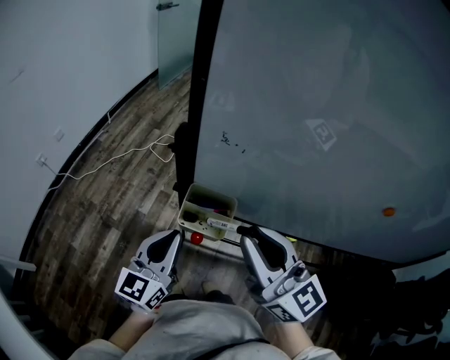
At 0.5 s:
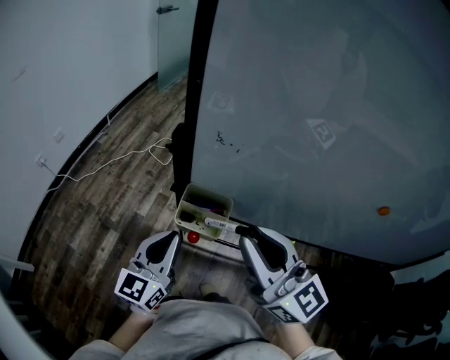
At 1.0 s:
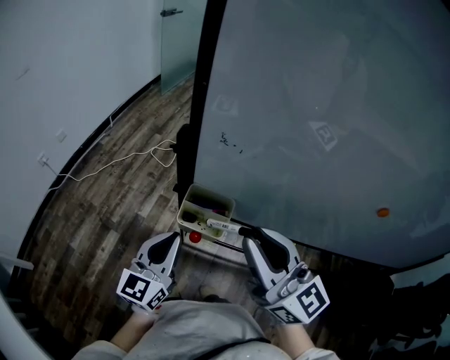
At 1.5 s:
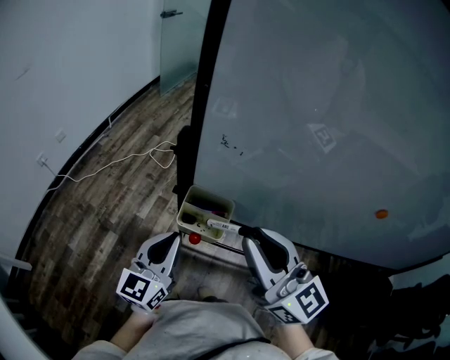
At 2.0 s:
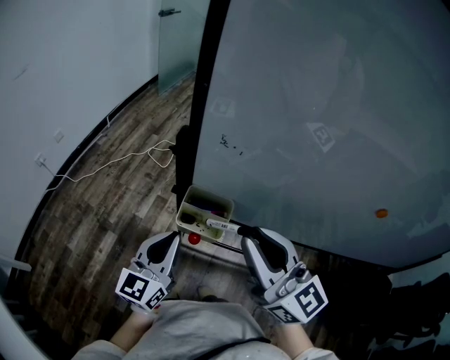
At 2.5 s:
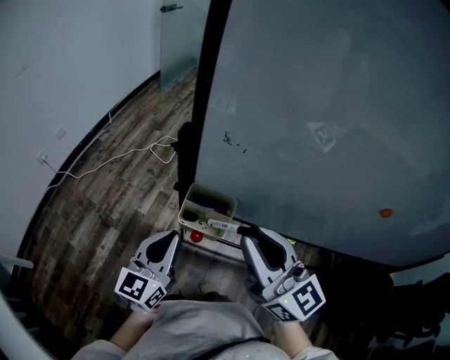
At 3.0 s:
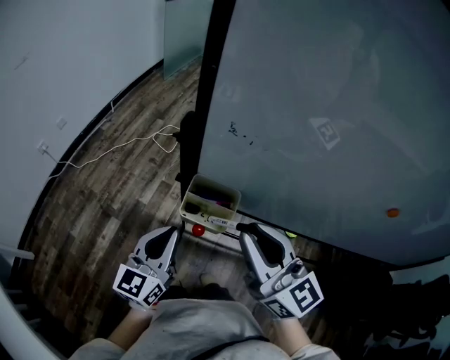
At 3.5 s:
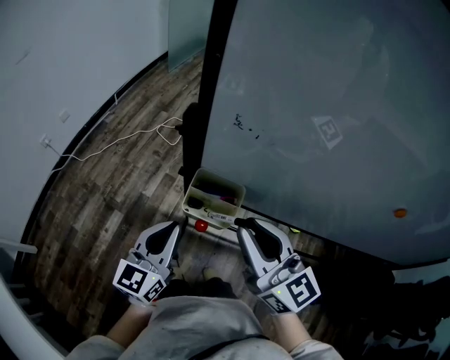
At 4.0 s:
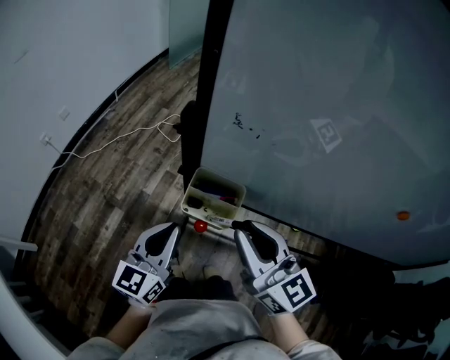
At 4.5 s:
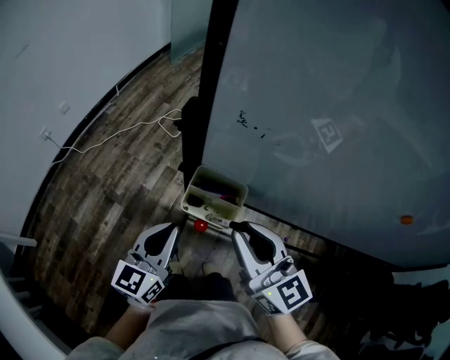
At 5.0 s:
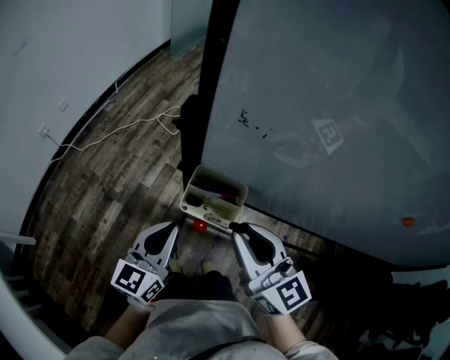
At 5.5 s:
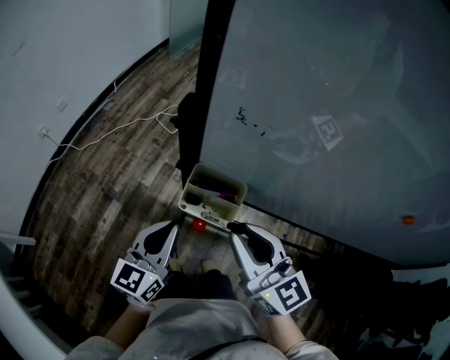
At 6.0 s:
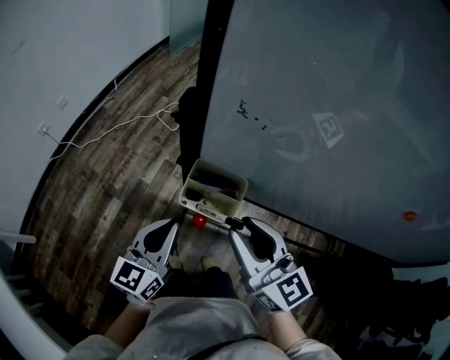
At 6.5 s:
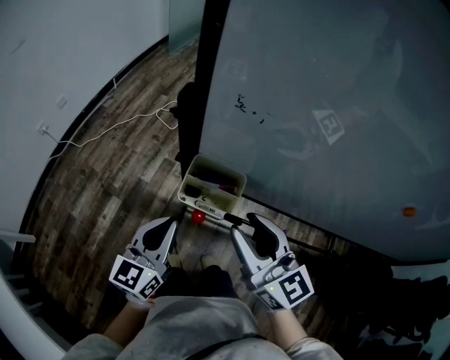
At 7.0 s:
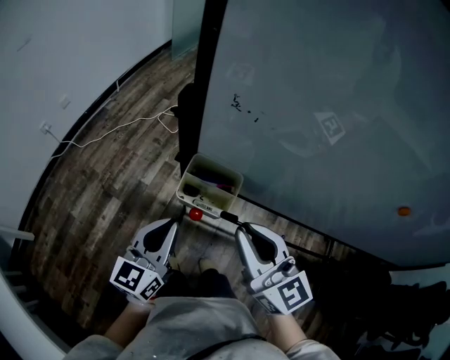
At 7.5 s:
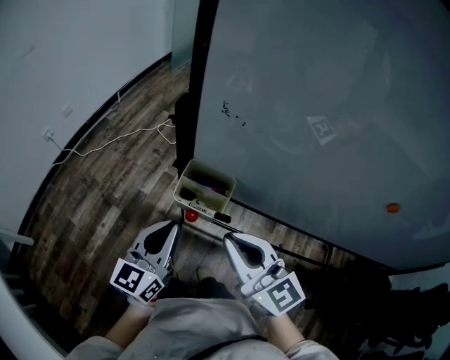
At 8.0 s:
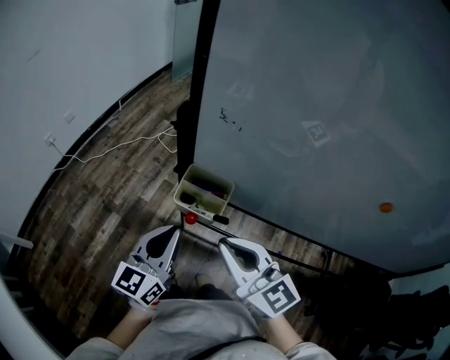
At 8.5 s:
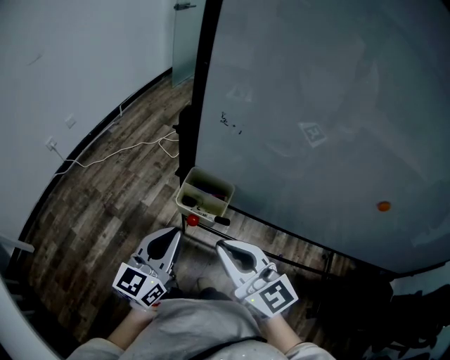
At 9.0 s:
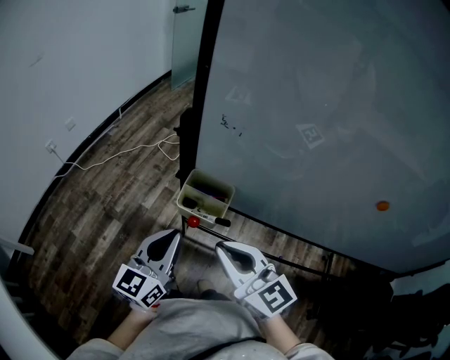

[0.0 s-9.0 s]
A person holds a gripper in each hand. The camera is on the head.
0.0 to 2.0 s: There are only small adjustments of the grippers.
2.0 to 4.5 s: The right gripper shifts some 10 cm downward.
4.5 to 7.0 s: There are only small adjustments of the grippers.
7.0 to 9.0 s: The grippers move only a little.

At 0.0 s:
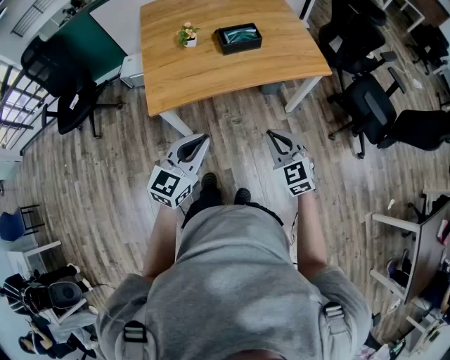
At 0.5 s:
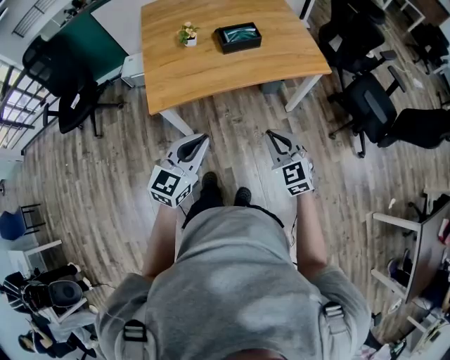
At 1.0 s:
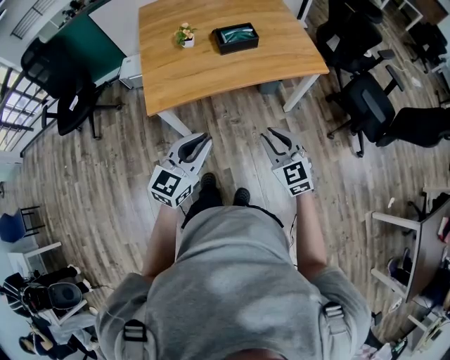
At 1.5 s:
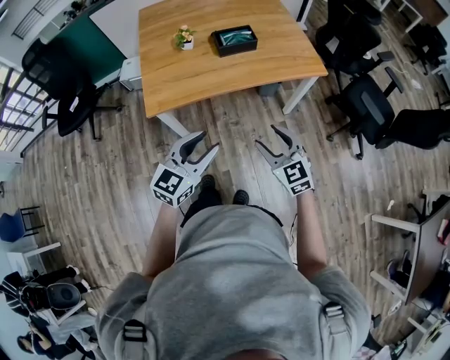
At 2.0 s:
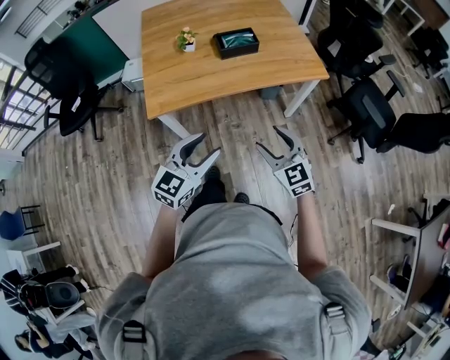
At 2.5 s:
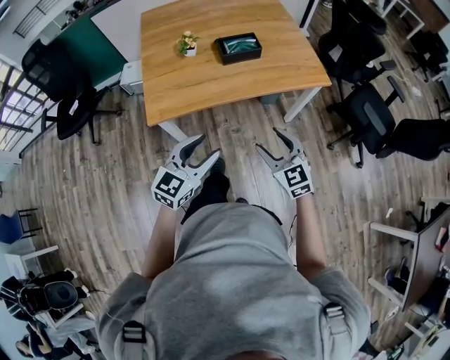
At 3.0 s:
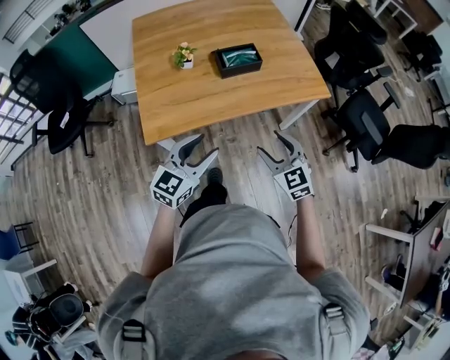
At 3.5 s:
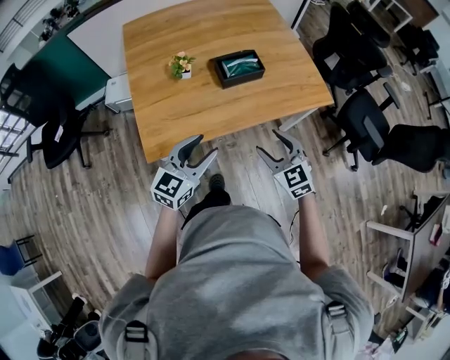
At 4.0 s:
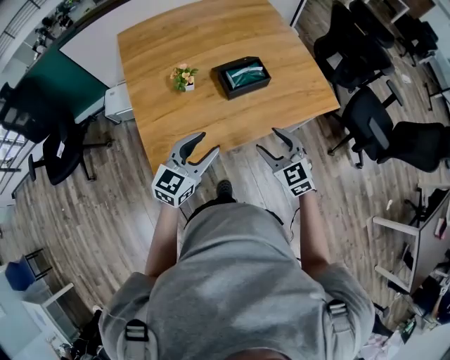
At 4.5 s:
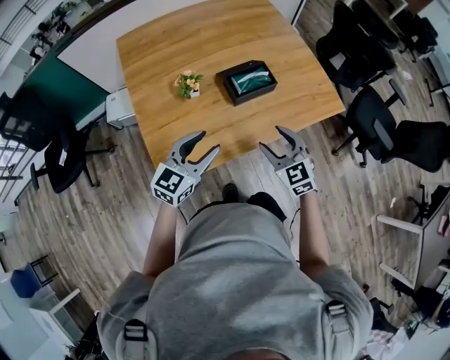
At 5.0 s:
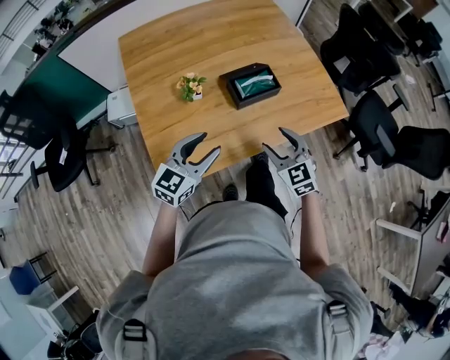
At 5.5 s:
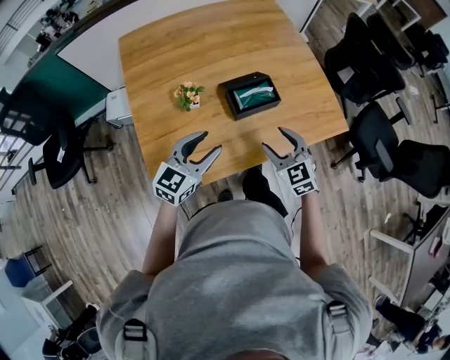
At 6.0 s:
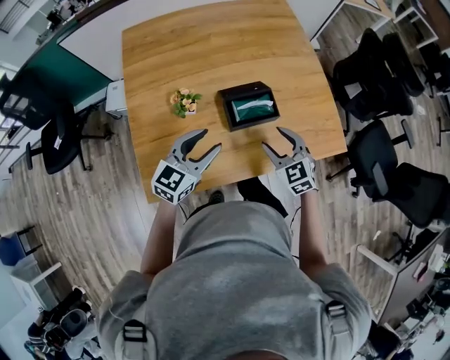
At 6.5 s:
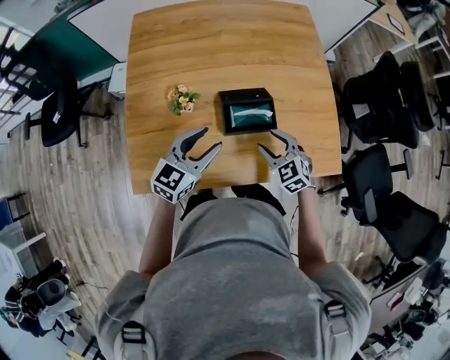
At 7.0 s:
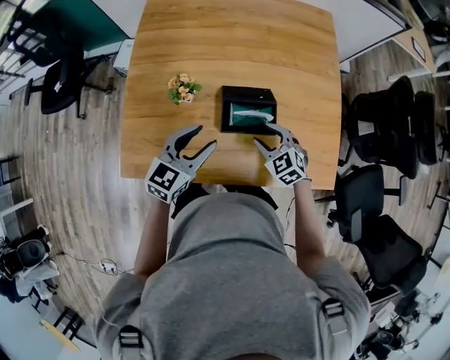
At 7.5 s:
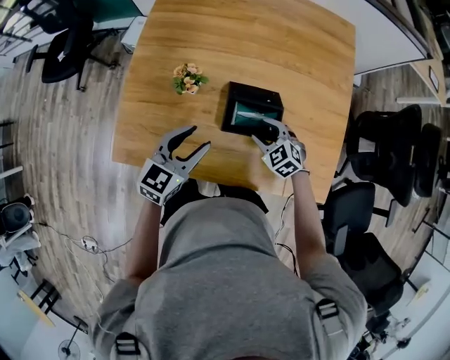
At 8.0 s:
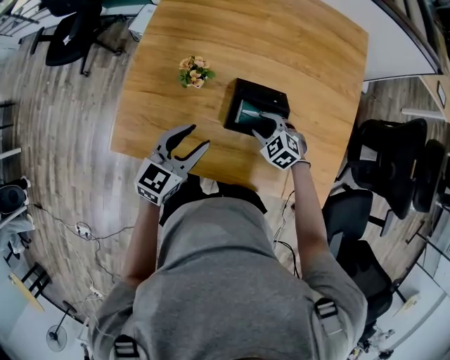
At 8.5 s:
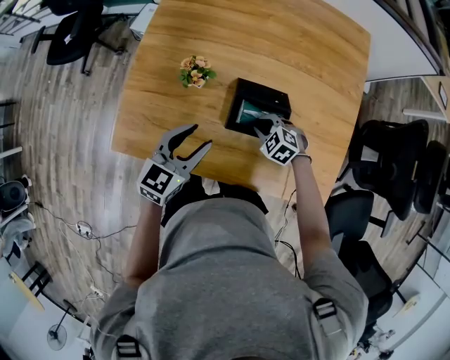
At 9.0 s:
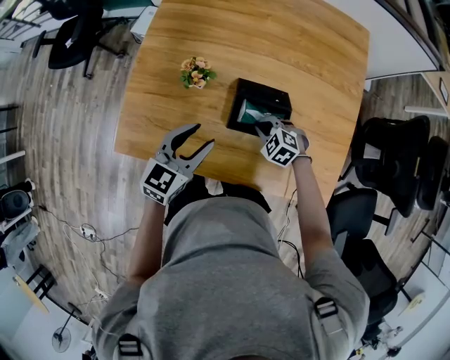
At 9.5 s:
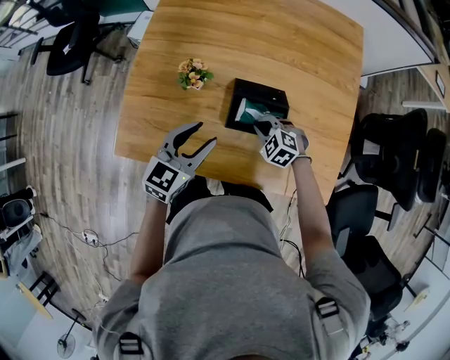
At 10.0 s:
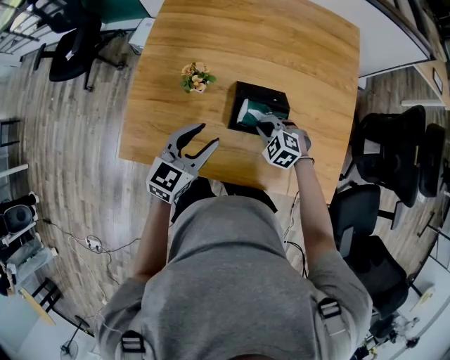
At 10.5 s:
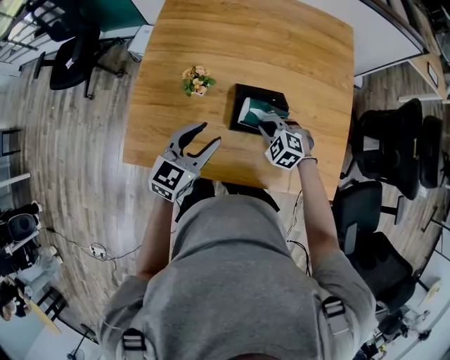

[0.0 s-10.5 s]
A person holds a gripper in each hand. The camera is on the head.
0.0 to 2.0 s: The left gripper opens its fingers. Meanwhile the right gripper opens up.
2.0 to 4.0 s: The two grippers go approximately 30 cm forward and to the left.
4.0 to 6.5 s: The grippers both shift forward by approximately 25 cm. The right gripper turns by some 20 degrees.
6.5 to 8.5 s: The right gripper shifts some 15 cm downward, swivels about 40 degrees, and closes. Meanwhile the left gripper changes place by roughly 5 cm, and turns by some 20 degrees.
8.5 to 10.5 s: The right gripper goes about 5 cm upward.

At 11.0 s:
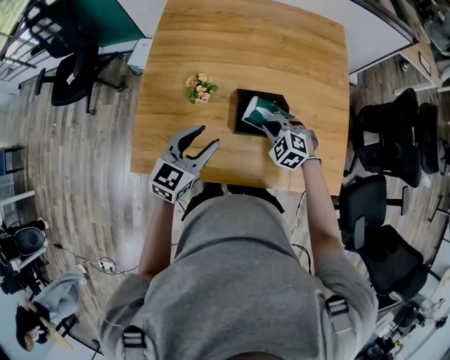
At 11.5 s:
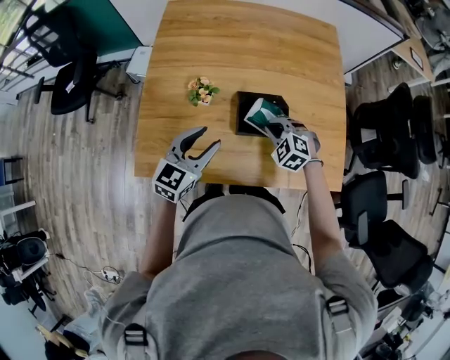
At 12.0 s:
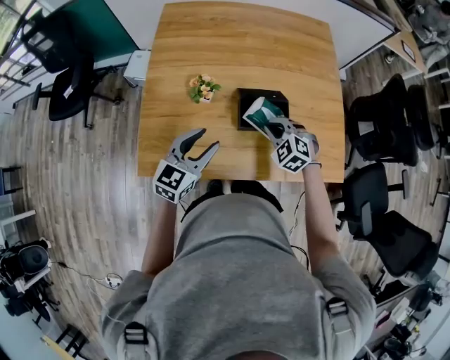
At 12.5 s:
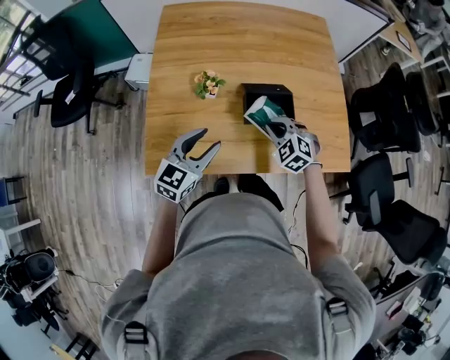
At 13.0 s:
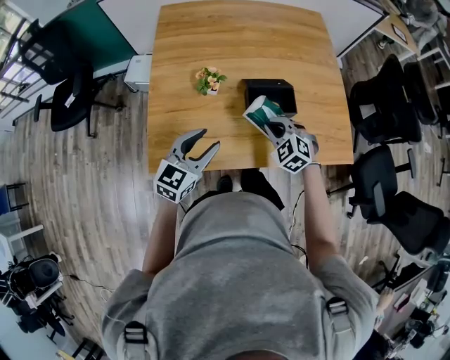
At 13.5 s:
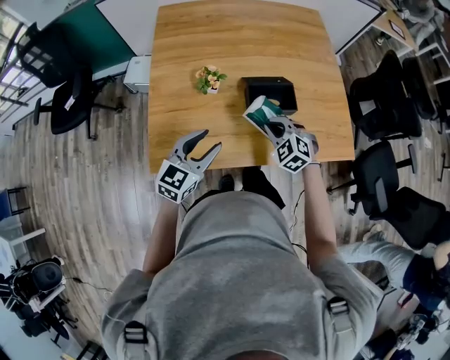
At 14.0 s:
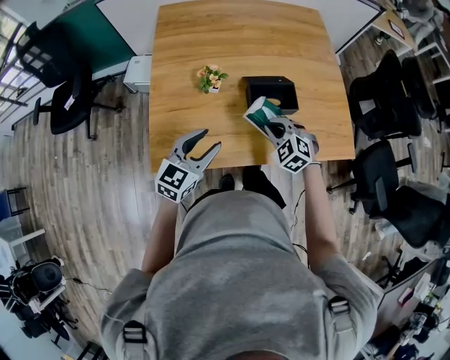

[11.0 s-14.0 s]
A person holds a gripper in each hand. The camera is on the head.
11.0 to 12.5 s: The right gripper moves backward, about 10 cm. Meanwhile the left gripper moves backward and to the left, approximately 10 cm.
12.5 to 14.0 s: The grippers move only a little.

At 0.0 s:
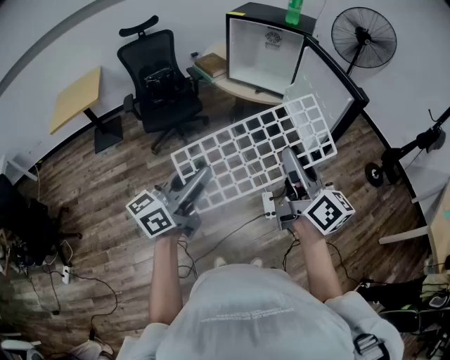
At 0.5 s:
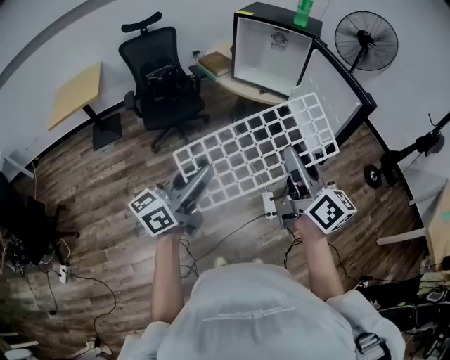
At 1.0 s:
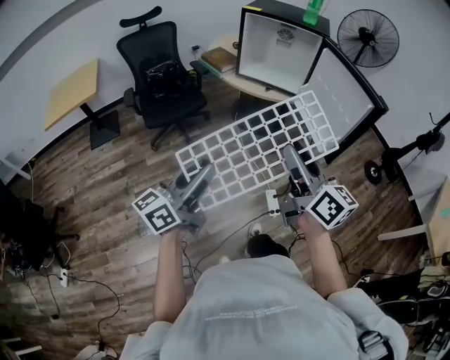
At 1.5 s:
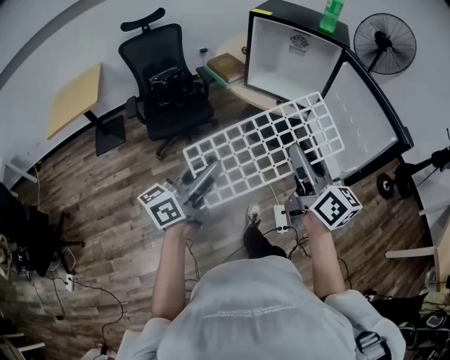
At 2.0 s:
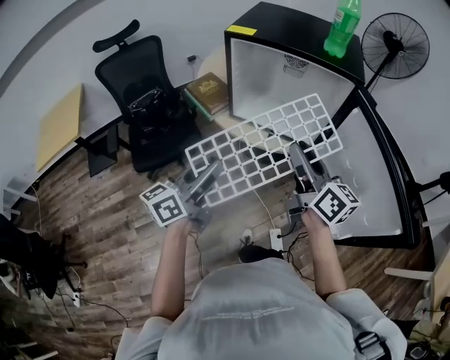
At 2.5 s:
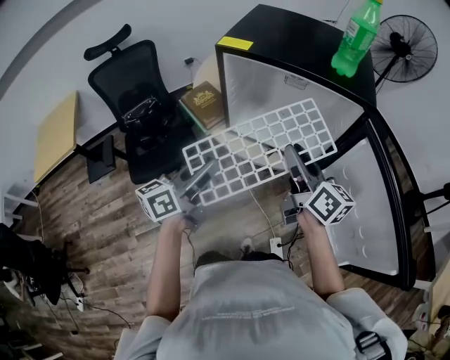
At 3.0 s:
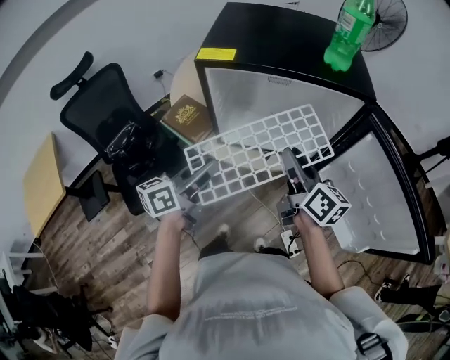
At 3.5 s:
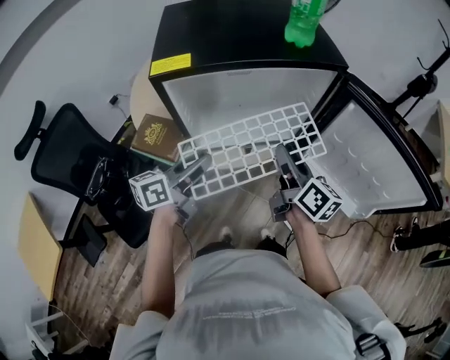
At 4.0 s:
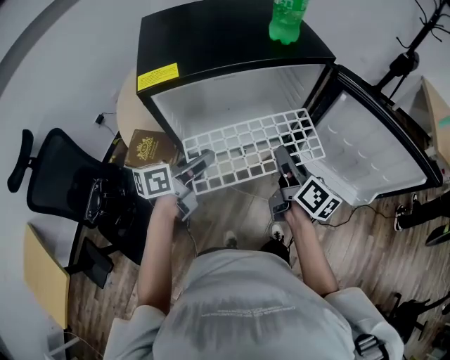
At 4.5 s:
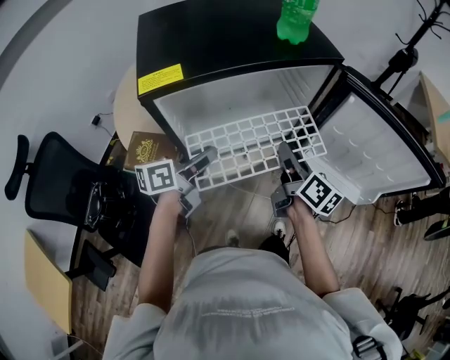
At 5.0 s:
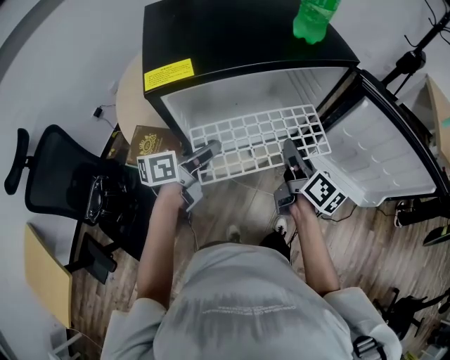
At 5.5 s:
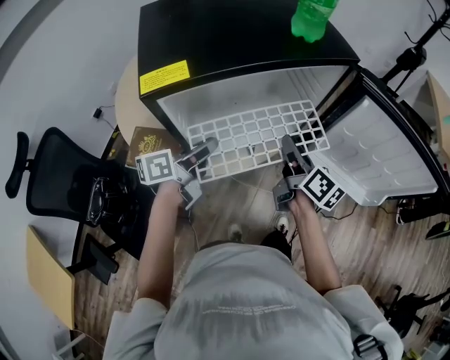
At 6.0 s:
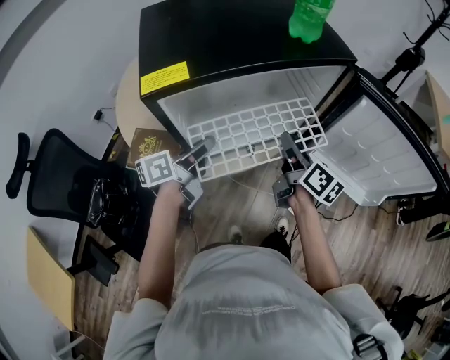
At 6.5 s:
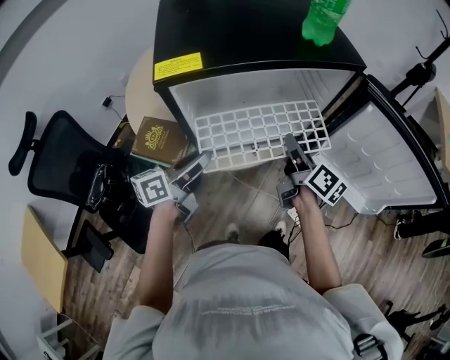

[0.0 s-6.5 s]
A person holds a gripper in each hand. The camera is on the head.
0.0 to 2.0 s: Both grippers are carried forward, roughly 50 cm.
2.0 to 4.5 s: The left gripper changes place by some 30 cm, and swivels roughly 50 degrees; the right gripper ends up some 20 cm from where it was, and turns by roughly 50 degrees.
4.5 to 6.5 s: The left gripper ends up approximately 5 cm from where it was.
